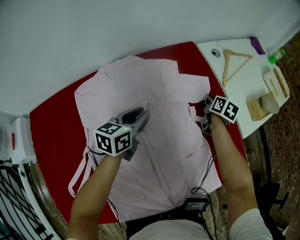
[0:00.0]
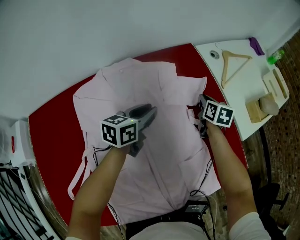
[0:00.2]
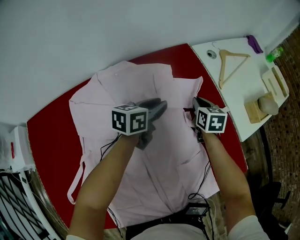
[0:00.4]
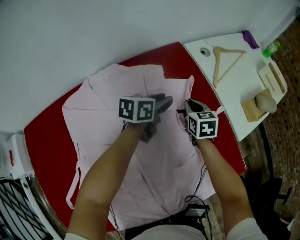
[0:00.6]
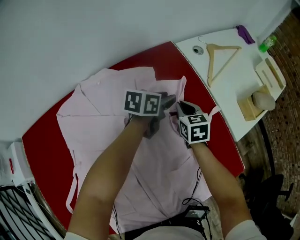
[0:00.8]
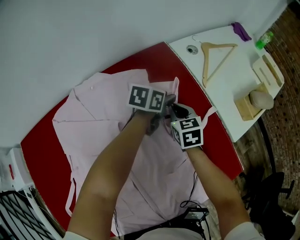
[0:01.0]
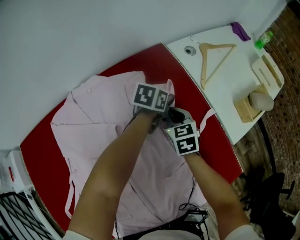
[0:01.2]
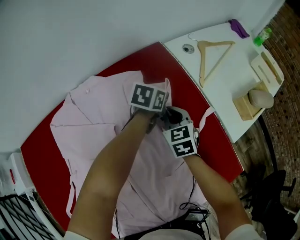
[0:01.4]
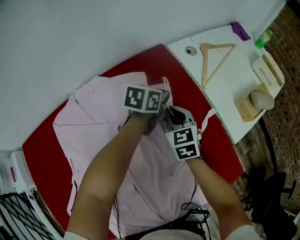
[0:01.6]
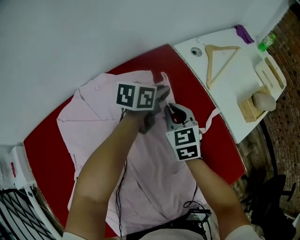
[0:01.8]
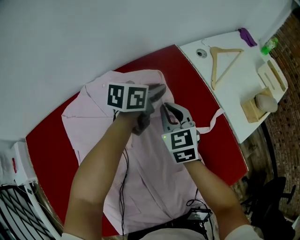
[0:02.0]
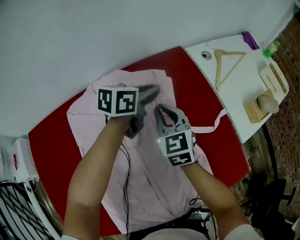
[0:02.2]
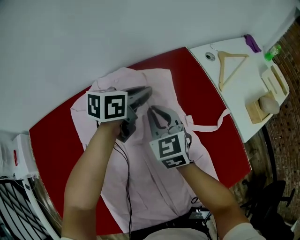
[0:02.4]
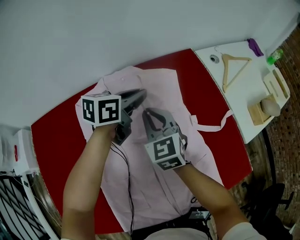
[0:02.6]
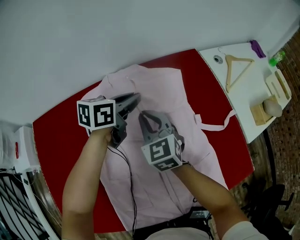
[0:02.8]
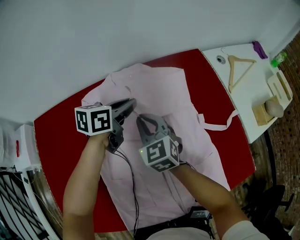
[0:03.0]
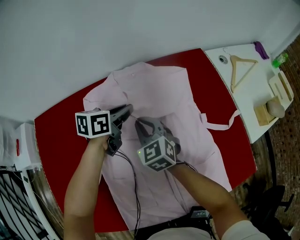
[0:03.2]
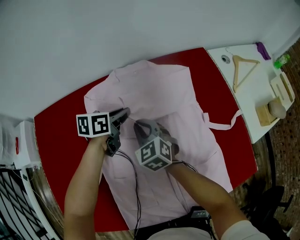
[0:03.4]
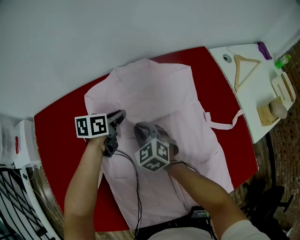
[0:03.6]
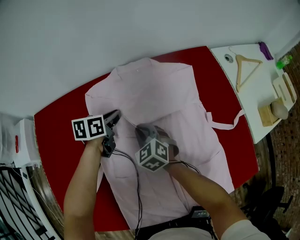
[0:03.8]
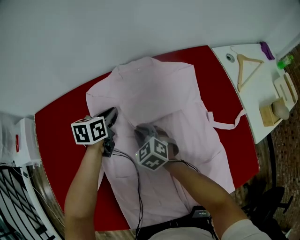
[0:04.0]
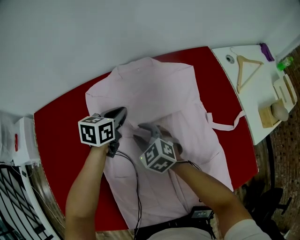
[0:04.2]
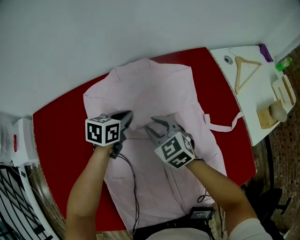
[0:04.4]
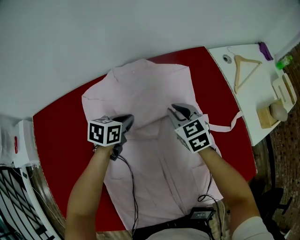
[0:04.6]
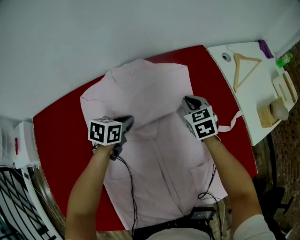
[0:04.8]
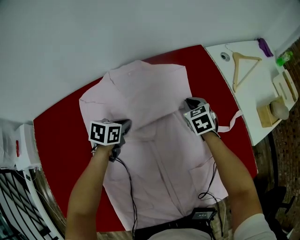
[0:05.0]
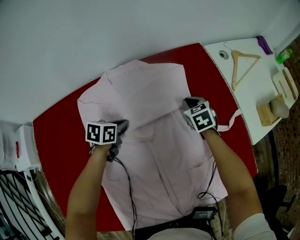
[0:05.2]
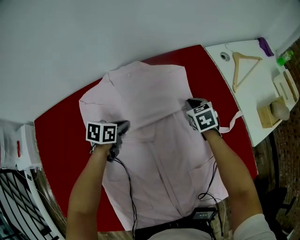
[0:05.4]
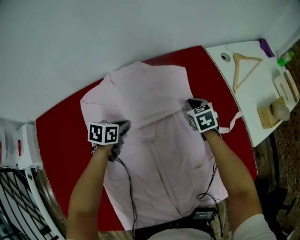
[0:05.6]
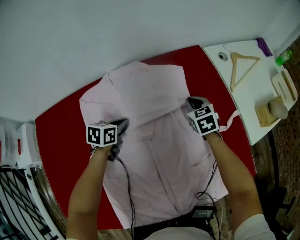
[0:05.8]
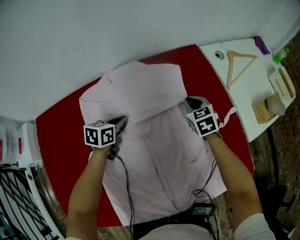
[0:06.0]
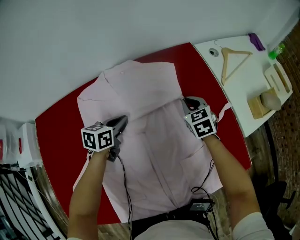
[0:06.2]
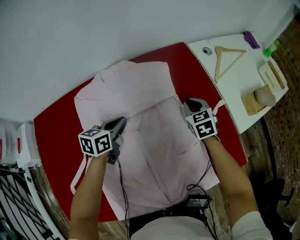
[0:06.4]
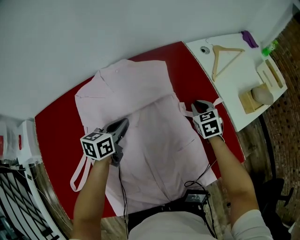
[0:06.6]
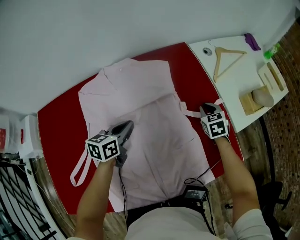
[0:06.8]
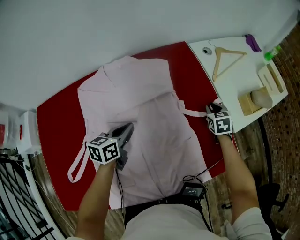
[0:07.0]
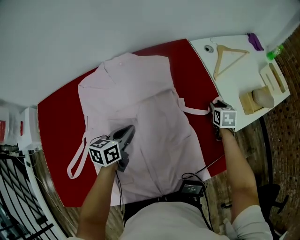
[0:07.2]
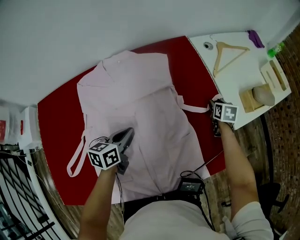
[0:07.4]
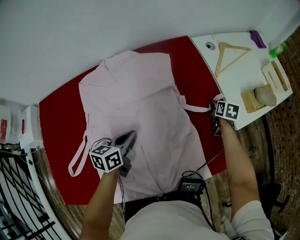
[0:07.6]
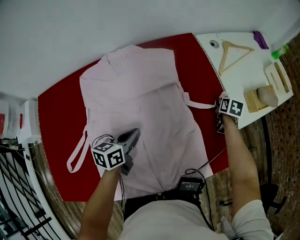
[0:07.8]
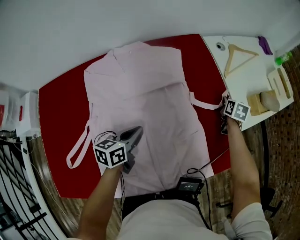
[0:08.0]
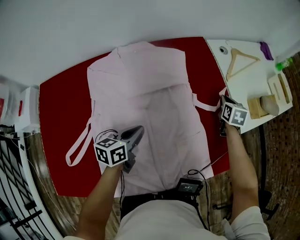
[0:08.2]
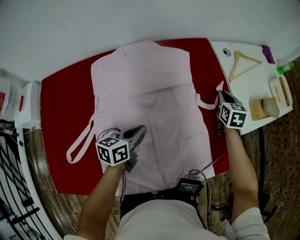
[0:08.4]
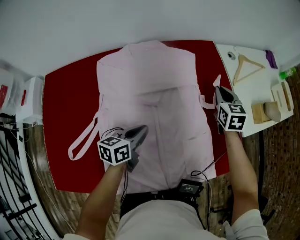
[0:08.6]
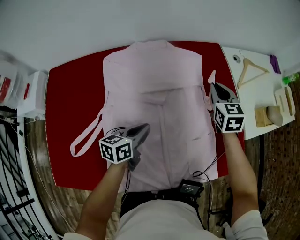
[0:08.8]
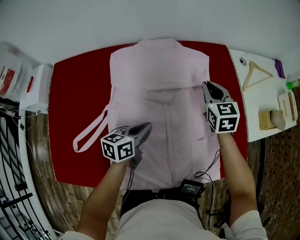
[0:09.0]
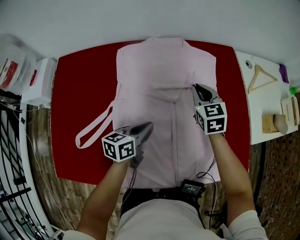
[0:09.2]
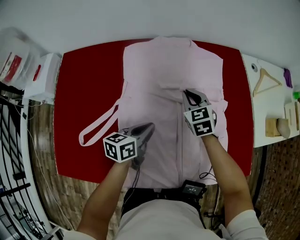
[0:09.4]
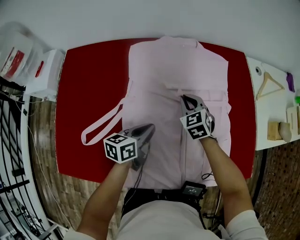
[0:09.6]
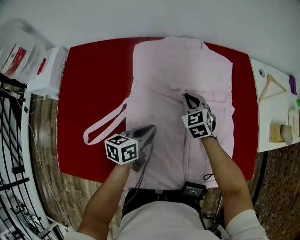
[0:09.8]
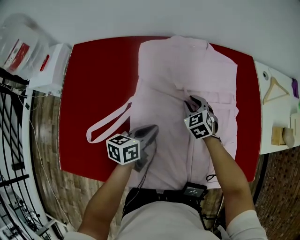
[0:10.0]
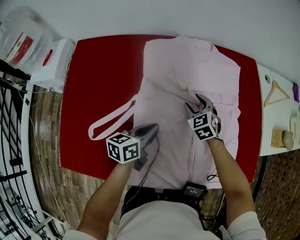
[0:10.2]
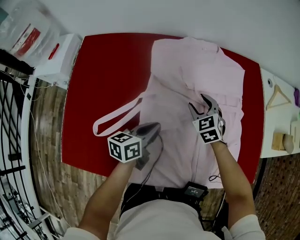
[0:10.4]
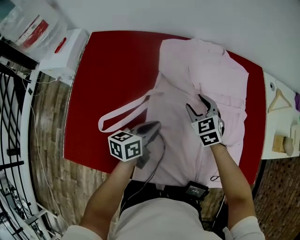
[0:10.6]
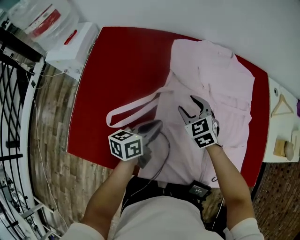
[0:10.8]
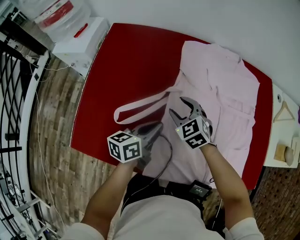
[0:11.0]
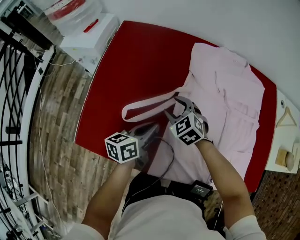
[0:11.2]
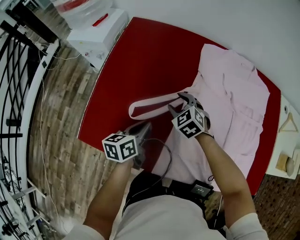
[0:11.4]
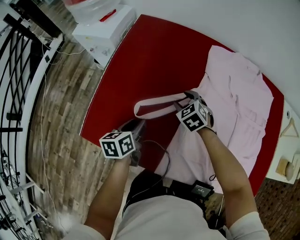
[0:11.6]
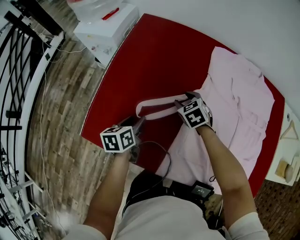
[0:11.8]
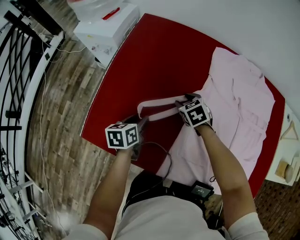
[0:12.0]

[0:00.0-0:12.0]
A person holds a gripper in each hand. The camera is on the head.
0:00.0 to 0:01.6: The left gripper heads forward and to the right, covering some 25 cm, and changes its angle by roughly 20 degrees; the right gripper moves to the left and backward, about 10 cm, and rotates around the line of its fingers by about 40 degrees, counterclockwise from behind.
0:01.6 to 0:03.0: The grippers both shift to the left and backward by some 30 cm. The right gripper rotates about 20 degrees.
0:03.0 to 0:04.4: The right gripper is displaced downward by roughly 5 cm, and opens its fingers. Meanwhile the left gripper moves downward, some 10 cm.
0:04.4 to 0:06.0: The right gripper moves to the right and forward, roughly 25 cm, rotates some 20 degrees, and closes.
0:06.0 to 0:07.6: The right gripper moves to the right, roughly 25 cm, turns by some 40 degrees, and opens its fingers. Meanwhile the left gripper shifts about 20 cm to the right, backward and upward.
0:07.6 to 0:09.0: The right gripper goes approximately 35 cm to the left and upward, changes its angle by about 50 degrees, and closes its fingers. The left gripper shifts about 5 cm to the left.
0:09.0 to 0:10.4: The left gripper shifts some 10 cm to the left. Meanwhile the right gripper heads to the left, downward and backward, covering roughly 20 cm, rotates about 30 degrees, and opens its fingers.
0:10.4 to 0:12.0: The right gripper changes place by roughly 30 cm, and turns by roughly 30 degrees. Meanwhile the left gripper changes place by about 30 cm, rotates about 30 degrees, and opens up.

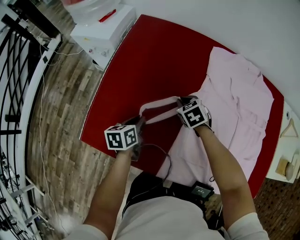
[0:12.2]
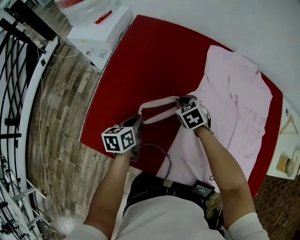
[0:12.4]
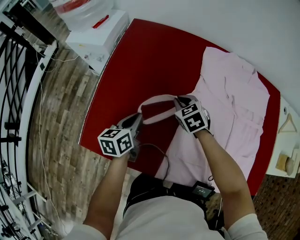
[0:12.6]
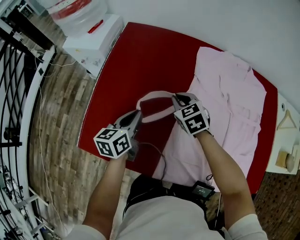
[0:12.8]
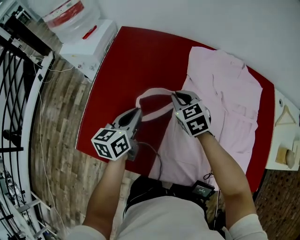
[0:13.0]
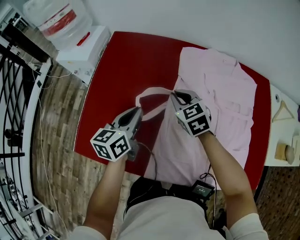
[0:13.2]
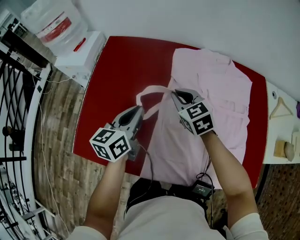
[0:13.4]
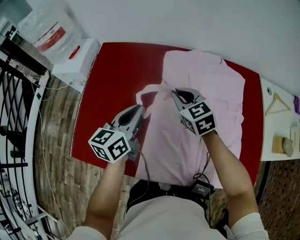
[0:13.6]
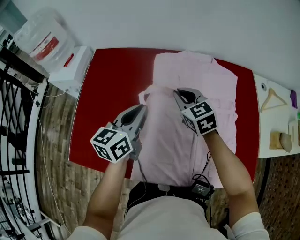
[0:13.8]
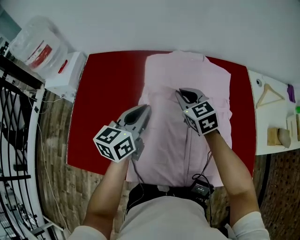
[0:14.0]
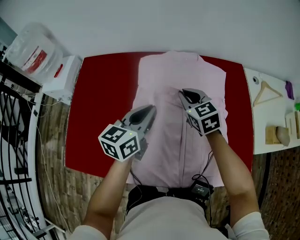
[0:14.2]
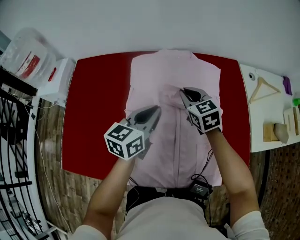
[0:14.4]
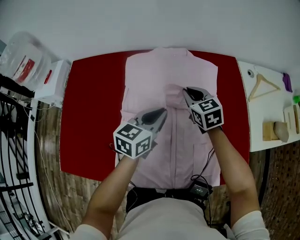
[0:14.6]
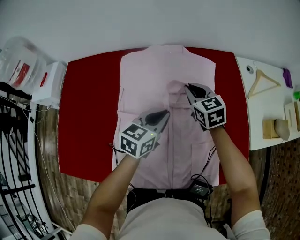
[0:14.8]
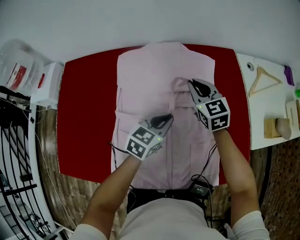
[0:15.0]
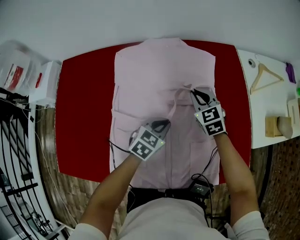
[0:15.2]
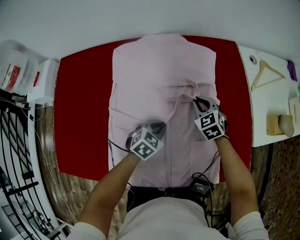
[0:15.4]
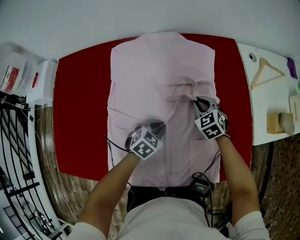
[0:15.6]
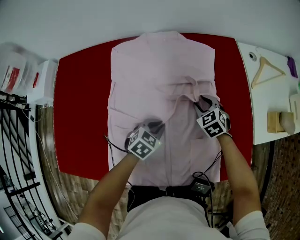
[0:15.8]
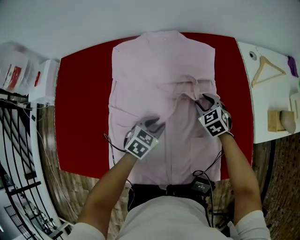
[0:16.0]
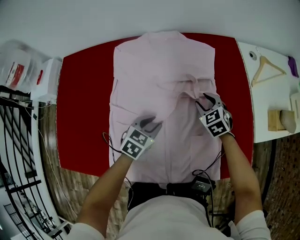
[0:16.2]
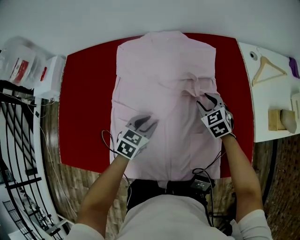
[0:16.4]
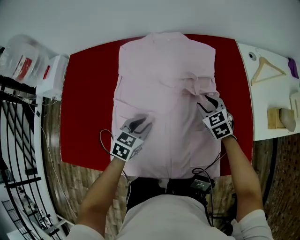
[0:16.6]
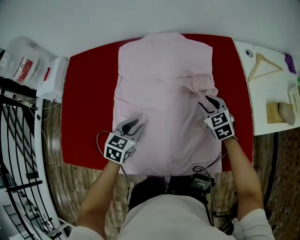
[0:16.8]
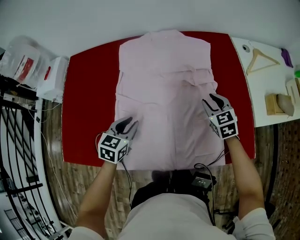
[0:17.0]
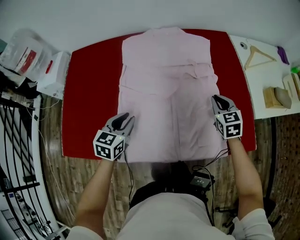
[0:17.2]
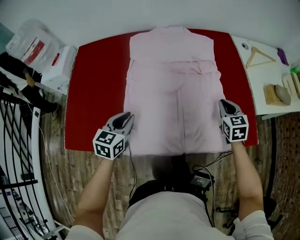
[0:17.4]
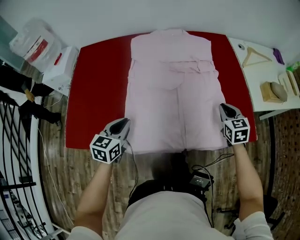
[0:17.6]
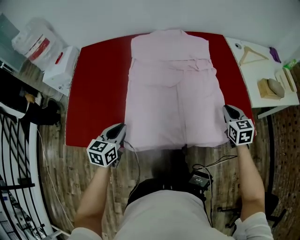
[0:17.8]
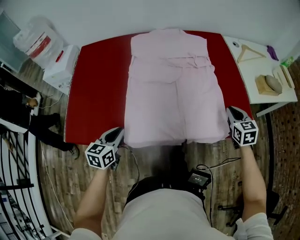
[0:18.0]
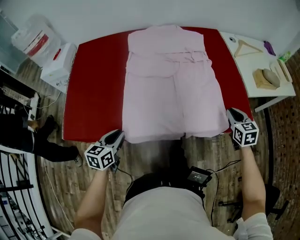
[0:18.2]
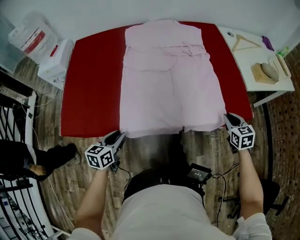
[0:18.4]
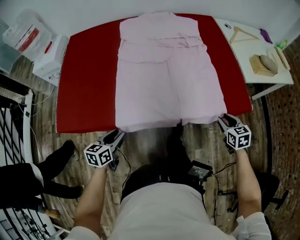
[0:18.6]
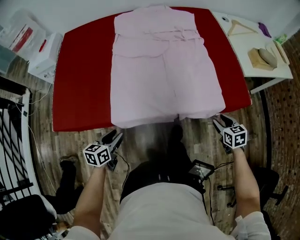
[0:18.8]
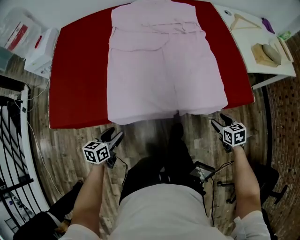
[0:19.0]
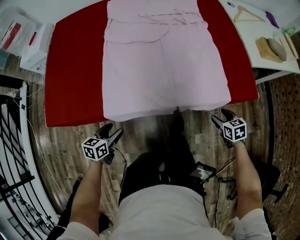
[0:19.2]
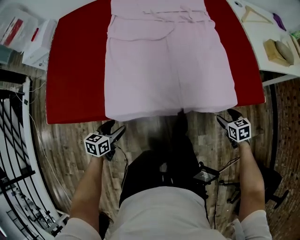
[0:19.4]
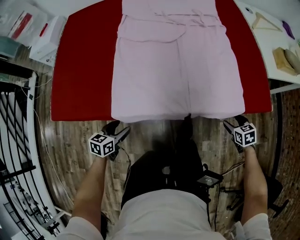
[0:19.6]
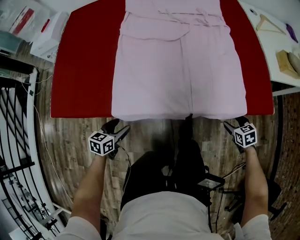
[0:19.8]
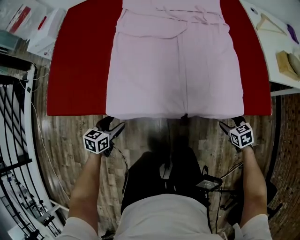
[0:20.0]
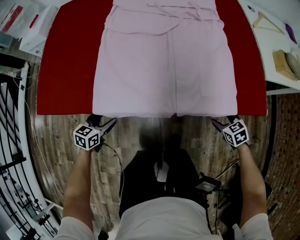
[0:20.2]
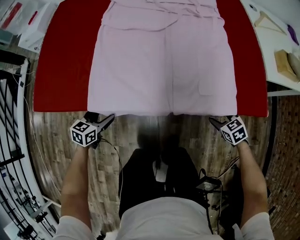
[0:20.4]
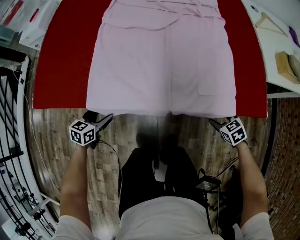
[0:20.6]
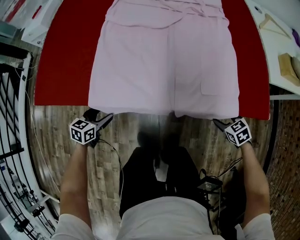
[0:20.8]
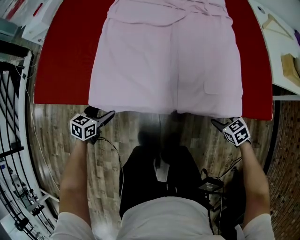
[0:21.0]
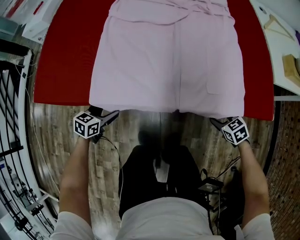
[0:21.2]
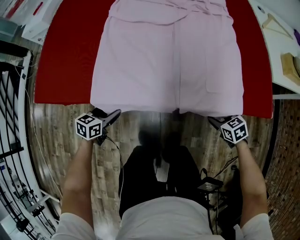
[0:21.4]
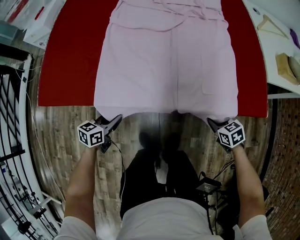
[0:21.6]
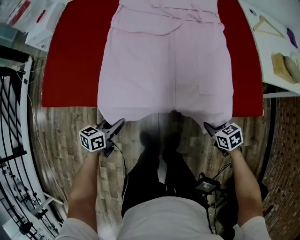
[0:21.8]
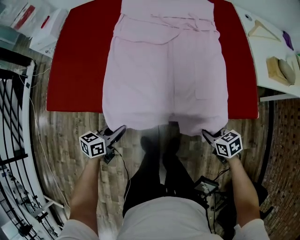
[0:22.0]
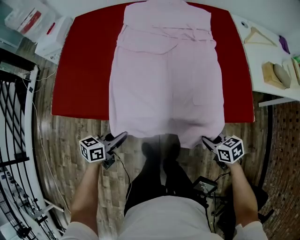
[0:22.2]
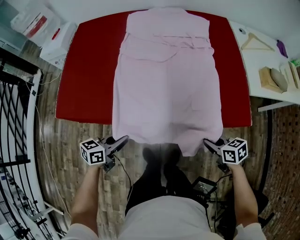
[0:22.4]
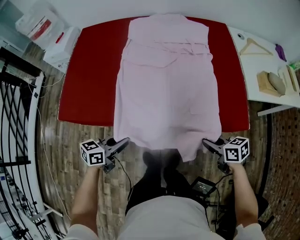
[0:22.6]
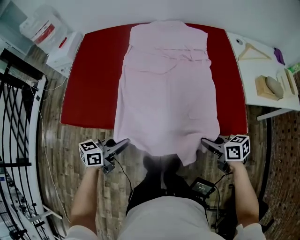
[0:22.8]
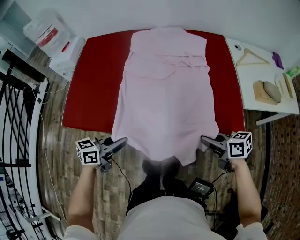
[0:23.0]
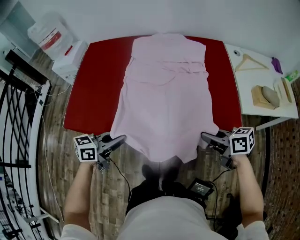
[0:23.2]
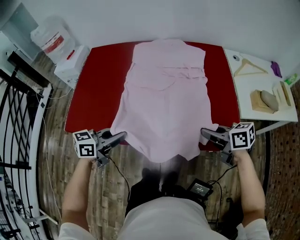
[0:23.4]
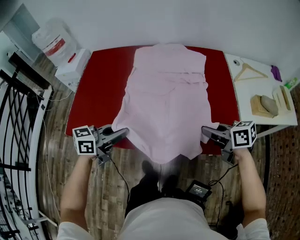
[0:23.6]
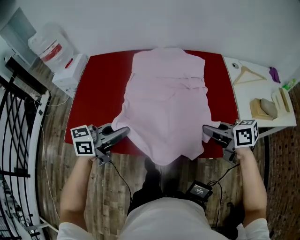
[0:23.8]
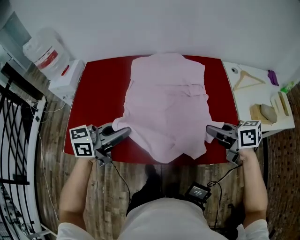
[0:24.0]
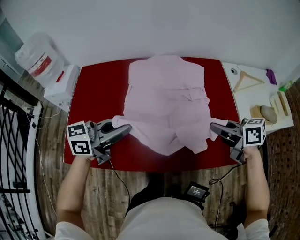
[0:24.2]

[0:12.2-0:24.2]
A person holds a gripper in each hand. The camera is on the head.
0:12.2 to 0:13.8: The two grippers go about 30 cm upward and to the right. The right gripper rotates approximately 30 degrees; the left gripper turns by approximately 40 degrees.
0:13.8 to 0:15.2: Both grippers move to the right and downward, some 30 cm. The left gripper turns by approximately 50 degrees.
0:15.2 to 0:16.6: The right gripper shifts some 10 cm backward and to the right, and opens its fingers, while the left gripper travels to the left and backward by approximately 10 cm, and opens its fingers.
0:16.6 to 0:18.2: The left gripper moves backward and to the left, some 30 cm, and rotates about 20 degrees. The right gripper heads backward and to the right, covering roughly 30 cm, turns by some 30 degrees, and closes.
0:18.2 to 0:19.8: Both grippers travel together downward, approximately 20 cm. The left gripper opens its fingers. The right gripper changes its angle by roughly 30 degrees, and opens its fingers.
0:19.8 to 0:21.2: The right gripper ends up about 5 cm from where it was, and changes its angle by approximately 20 degrees.
0:21.2 to 0:22.6: The grippers both shift upward by roughly 20 cm. The left gripper rotates about 20 degrees, and closes up, while the right gripper swivels approximately 40 degrees, and closes its fingers.
0:22.6 to 0:24.2: The left gripper travels upward and forward by approximately 30 cm, and changes its angle by approximately 30 degrees; the right gripper goes approximately 30 cm forward and upward.
